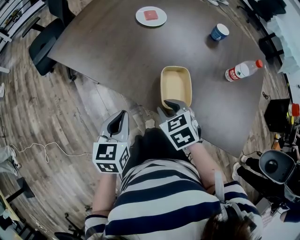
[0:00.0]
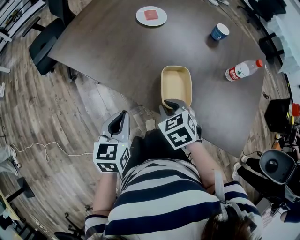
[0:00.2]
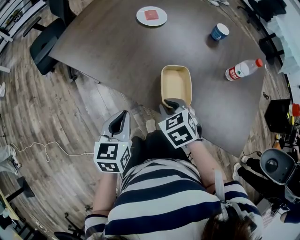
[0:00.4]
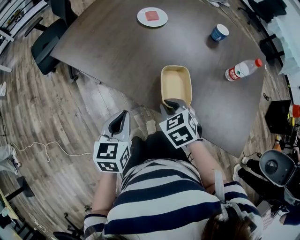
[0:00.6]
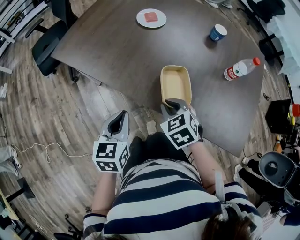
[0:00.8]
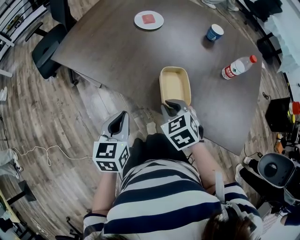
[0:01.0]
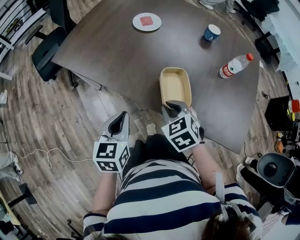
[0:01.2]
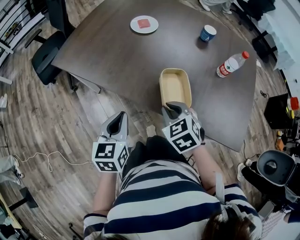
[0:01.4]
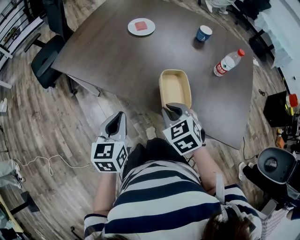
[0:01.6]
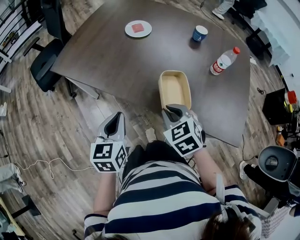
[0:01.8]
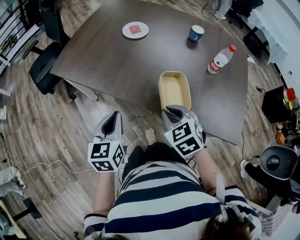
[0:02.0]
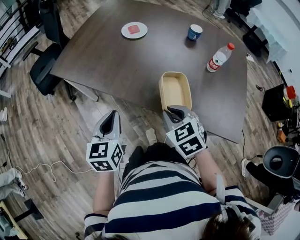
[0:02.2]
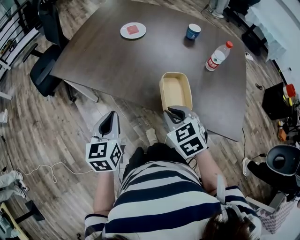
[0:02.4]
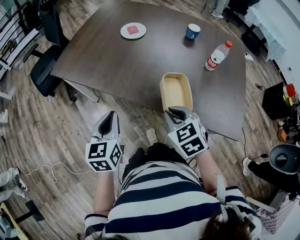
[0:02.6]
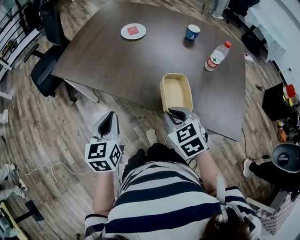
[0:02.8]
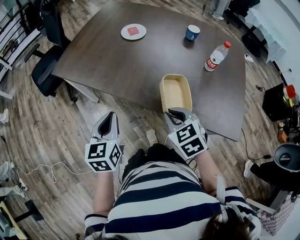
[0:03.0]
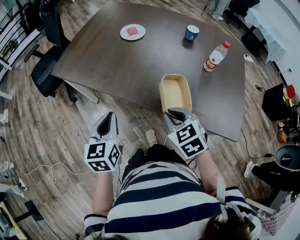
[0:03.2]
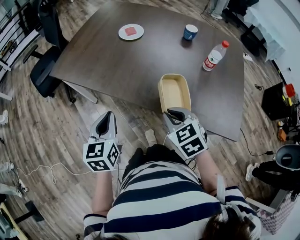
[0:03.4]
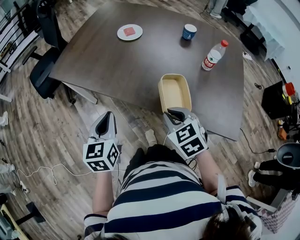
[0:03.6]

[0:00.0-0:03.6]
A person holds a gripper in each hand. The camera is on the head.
0.0 to 1.8 s: The left gripper changes place by some 5 cm, while the right gripper shifts approximately 10 cm upward and backward.
1.8 to 3.6 s: The right gripper moves some 5 cm.

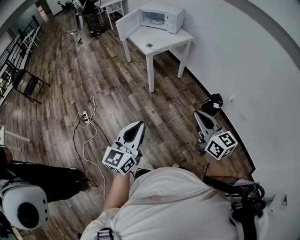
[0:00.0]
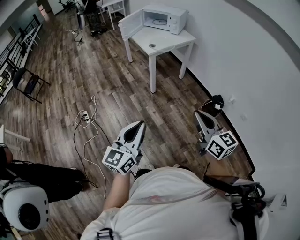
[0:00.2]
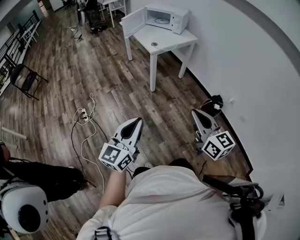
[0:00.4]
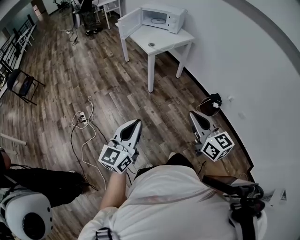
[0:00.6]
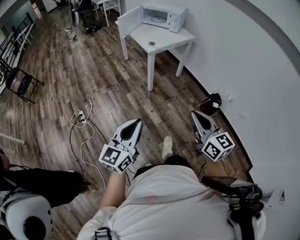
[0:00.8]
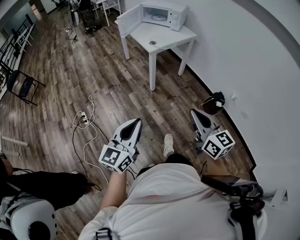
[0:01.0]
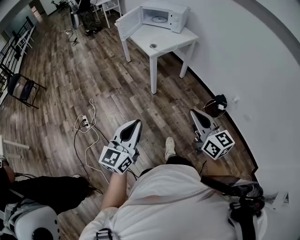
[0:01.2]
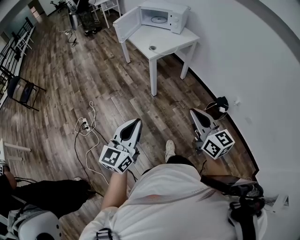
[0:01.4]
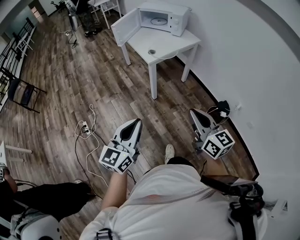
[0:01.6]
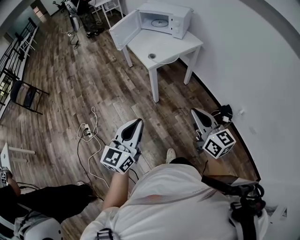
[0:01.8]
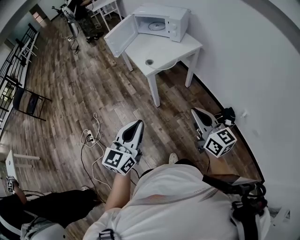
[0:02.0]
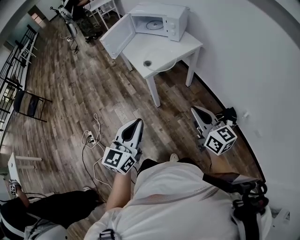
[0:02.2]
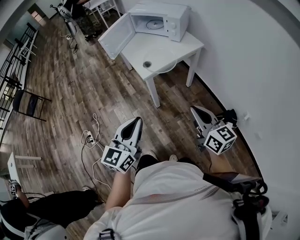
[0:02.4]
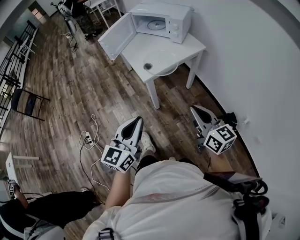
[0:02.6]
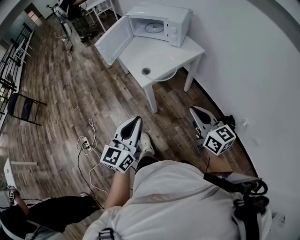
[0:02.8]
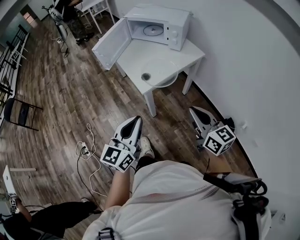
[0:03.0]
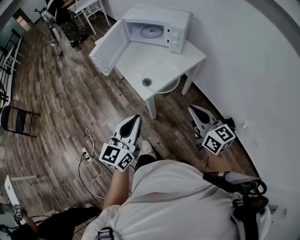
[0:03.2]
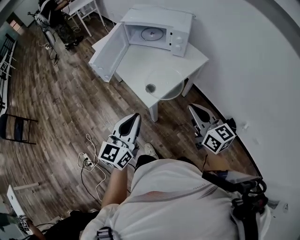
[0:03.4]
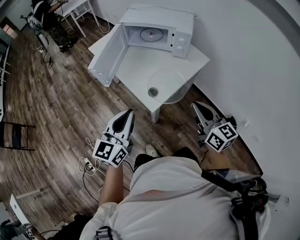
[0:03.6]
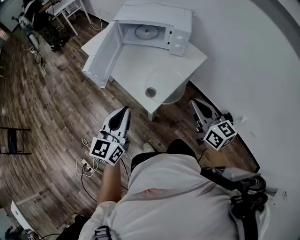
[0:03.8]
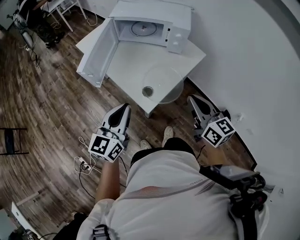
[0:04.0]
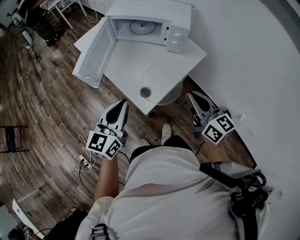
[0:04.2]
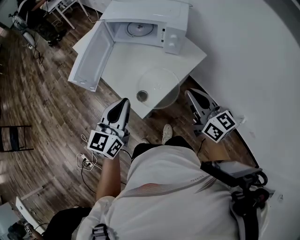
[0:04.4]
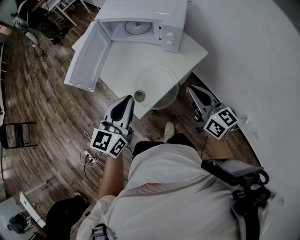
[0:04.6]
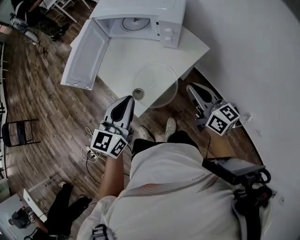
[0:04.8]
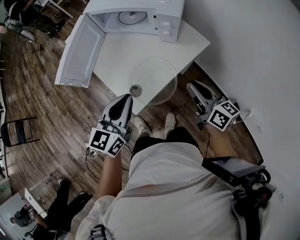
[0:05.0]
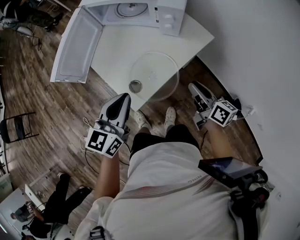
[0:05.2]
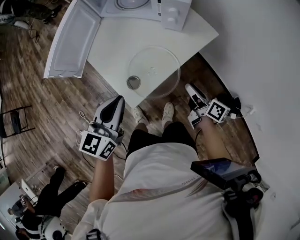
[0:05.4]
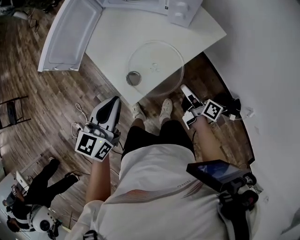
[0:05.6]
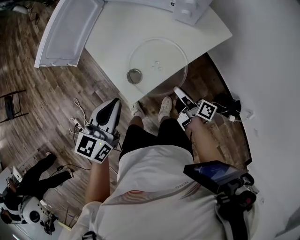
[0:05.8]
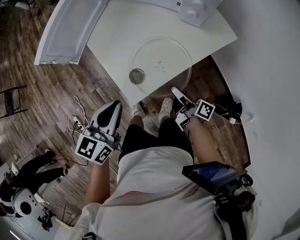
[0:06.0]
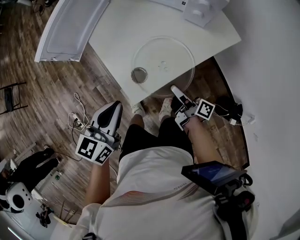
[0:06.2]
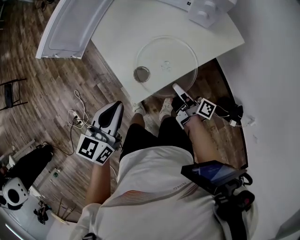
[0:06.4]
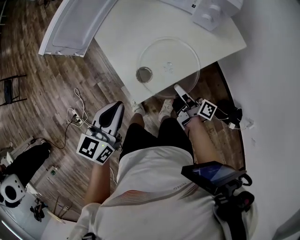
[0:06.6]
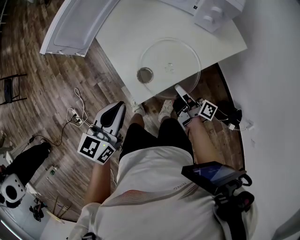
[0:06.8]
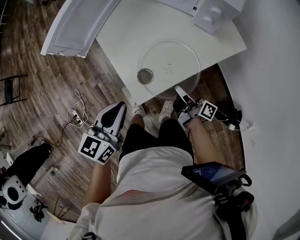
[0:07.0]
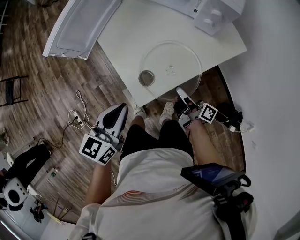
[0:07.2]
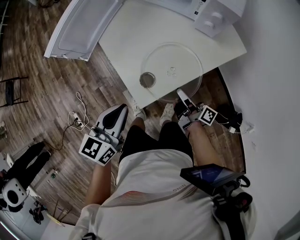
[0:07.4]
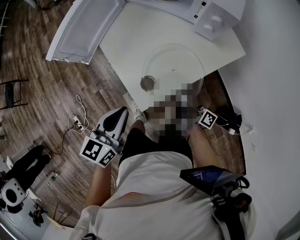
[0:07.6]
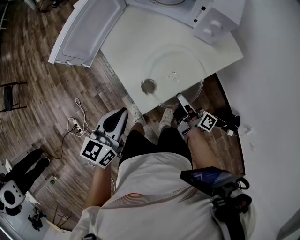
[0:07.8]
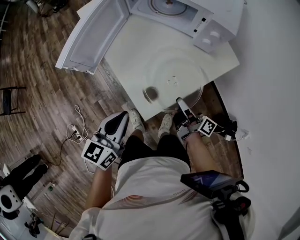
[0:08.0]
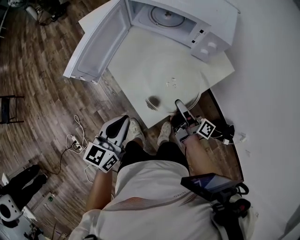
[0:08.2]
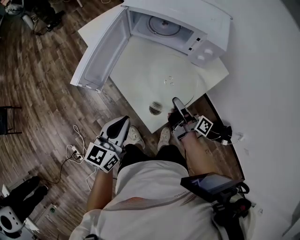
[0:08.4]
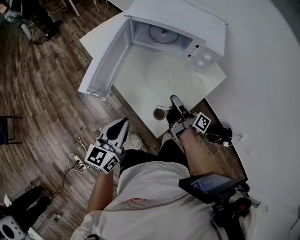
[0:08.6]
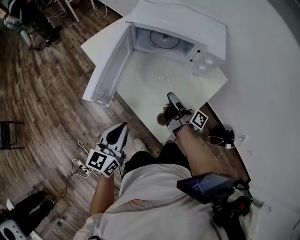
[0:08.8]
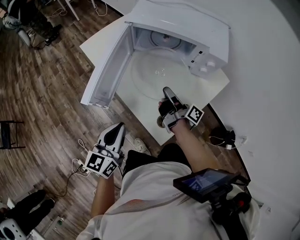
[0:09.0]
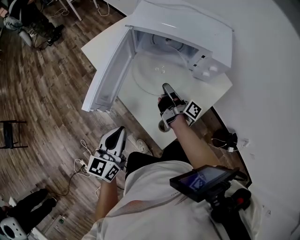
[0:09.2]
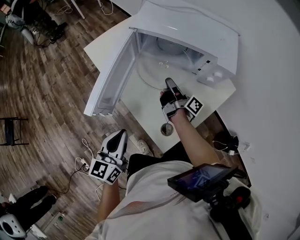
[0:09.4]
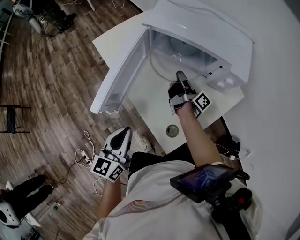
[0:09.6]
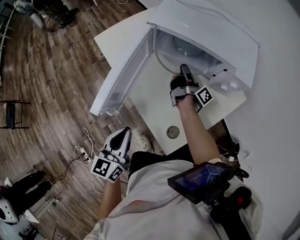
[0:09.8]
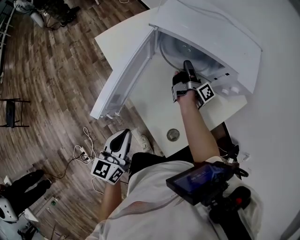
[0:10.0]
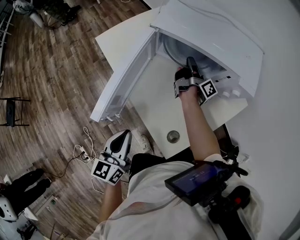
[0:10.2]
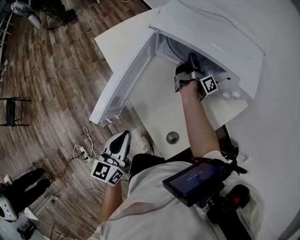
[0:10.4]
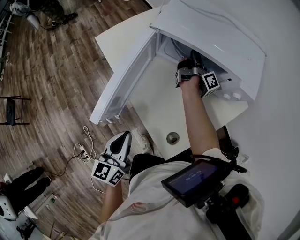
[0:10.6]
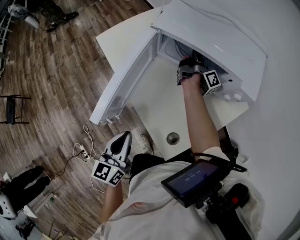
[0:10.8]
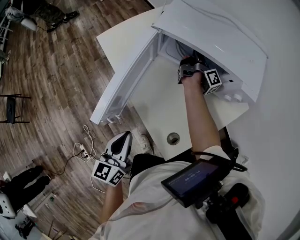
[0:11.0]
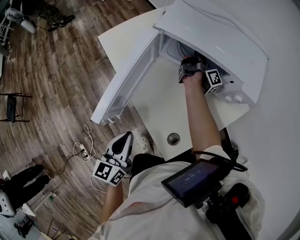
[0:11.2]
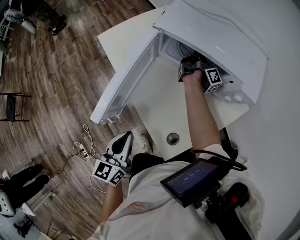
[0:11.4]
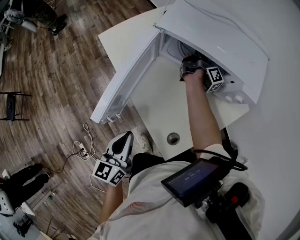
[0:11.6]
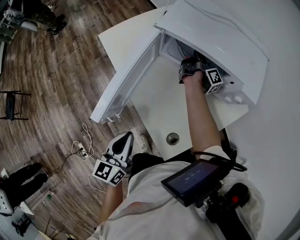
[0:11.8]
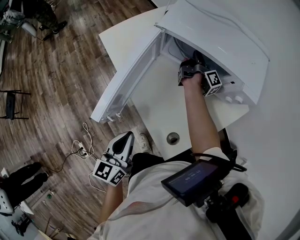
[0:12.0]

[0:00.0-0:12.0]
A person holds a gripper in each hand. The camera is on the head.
0.0 to 1.6 s: Both grippers travel together forward, roughly 20 cm.
1.6 to 3.0 s: Both grippers move forward, some 30 cm.
3.0 to 4.4 s: The grippers both shift forward by about 30 cm.
4.4 to 6.0 s: The right gripper goes some 30 cm downward, twists about 60 degrees clockwise, seen from behind, and opens up; the left gripper moves downward, about 15 cm.
6.0 to 7.6 s: The right gripper closes up.
7.6 to 9.0 s: The left gripper goes approximately 15 cm to the left, forward and upward. The right gripper travels forward, to the left and upward by some 25 cm.
9.0 to 10.4 s: The right gripper heads forward, covering roughly 25 cm, and changes its angle by approximately 20 degrees. Meanwhile the left gripper ends up roughly 5 cm from where it was.
10.4 to 12.0 s: The grippers stay close to where they were, moving slightly.

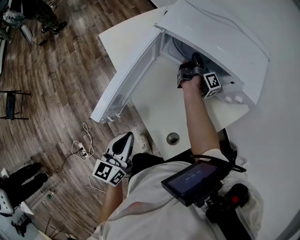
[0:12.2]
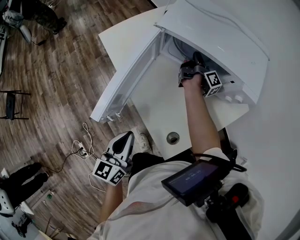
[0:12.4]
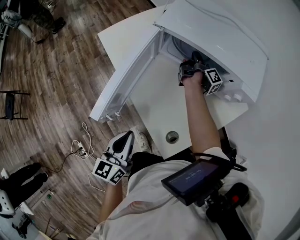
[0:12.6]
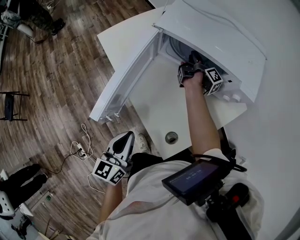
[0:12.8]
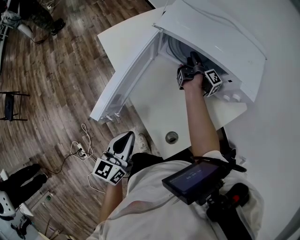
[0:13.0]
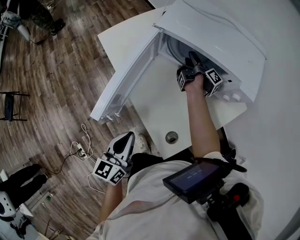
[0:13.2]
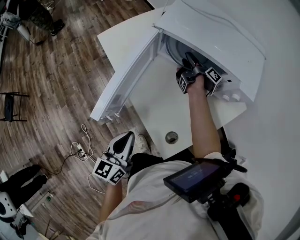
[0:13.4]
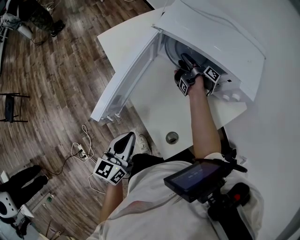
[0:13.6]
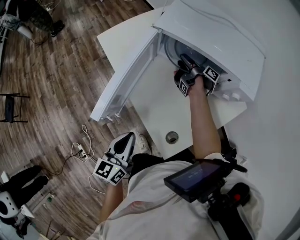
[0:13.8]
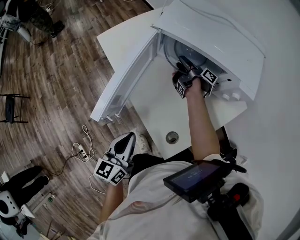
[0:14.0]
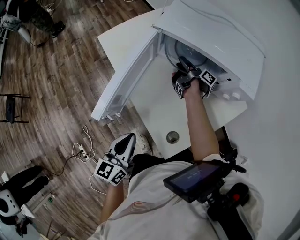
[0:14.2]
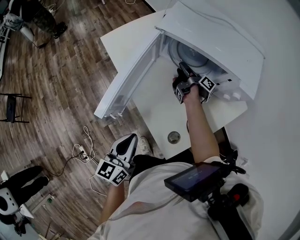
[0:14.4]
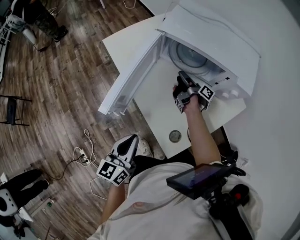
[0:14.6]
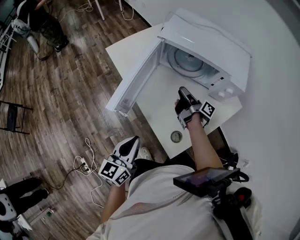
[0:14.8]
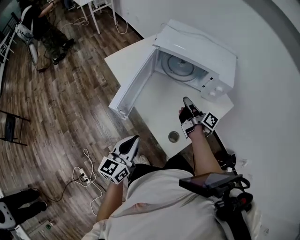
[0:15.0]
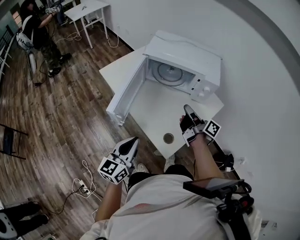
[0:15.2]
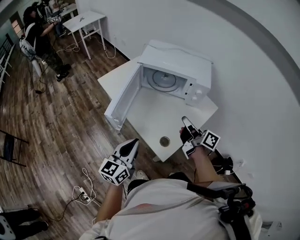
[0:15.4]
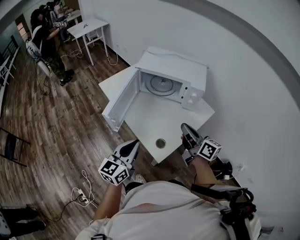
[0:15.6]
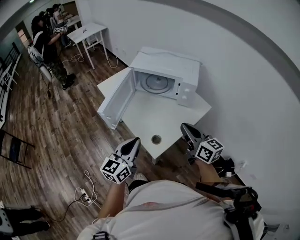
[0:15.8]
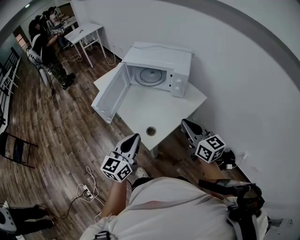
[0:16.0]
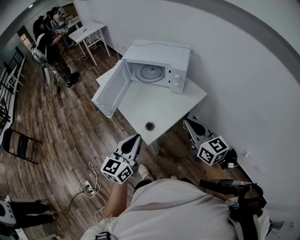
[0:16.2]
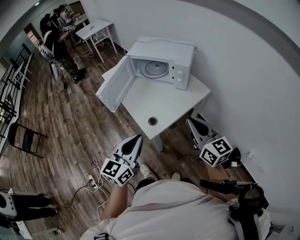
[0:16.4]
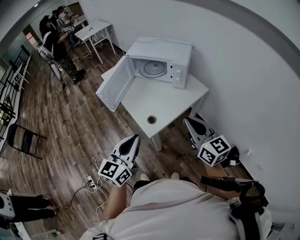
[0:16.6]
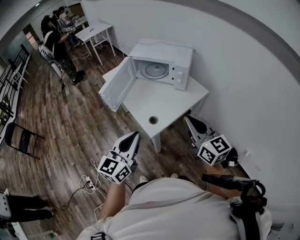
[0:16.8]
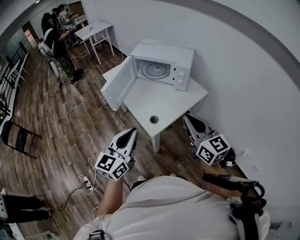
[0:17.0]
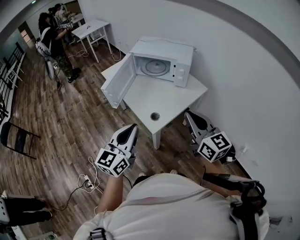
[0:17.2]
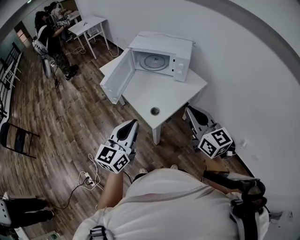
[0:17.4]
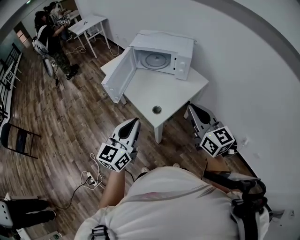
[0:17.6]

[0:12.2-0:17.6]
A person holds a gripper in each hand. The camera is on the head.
12.2 to 13.6 s: The right gripper travels to the left by about 5 cm, swivels about 30 degrees, and opens.
13.6 to 15.0 s: The right gripper moves backward and upward, some 25 cm, changes its angle by some 30 degrees, and closes its fingers. The left gripper heads backward, covering about 5 cm.
15.0 to 16.2 s: The left gripper goes approximately 25 cm to the right, backward and upward. Meanwhile the right gripper heads backward, upward and to the right, covering approximately 40 cm, and rotates around the line of its fingers by roughly 60 degrees, counterclockwise from behind.
16.2 to 17.6 s: The right gripper is displaced backward, upward and to the left by some 10 cm. Meanwhile the left gripper moves to the left, upward and backward, roughly 10 cm.

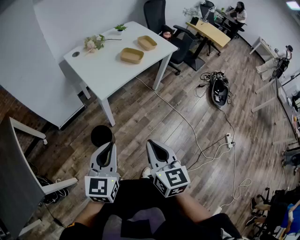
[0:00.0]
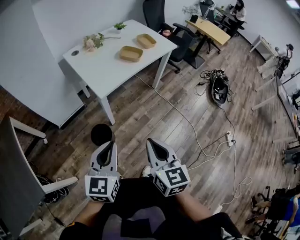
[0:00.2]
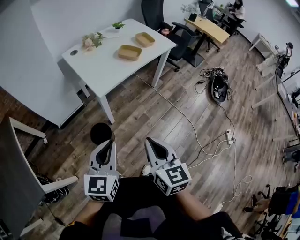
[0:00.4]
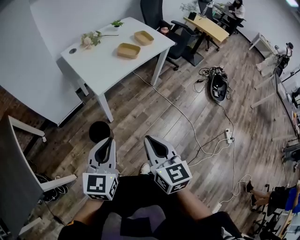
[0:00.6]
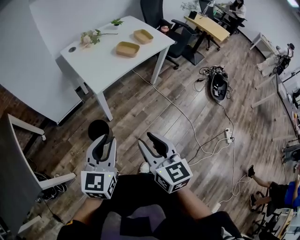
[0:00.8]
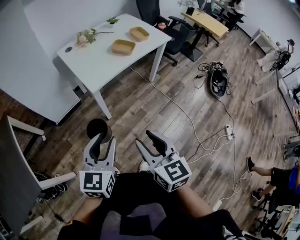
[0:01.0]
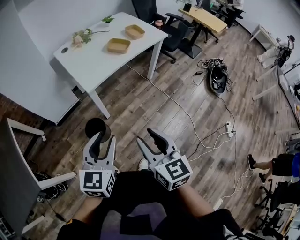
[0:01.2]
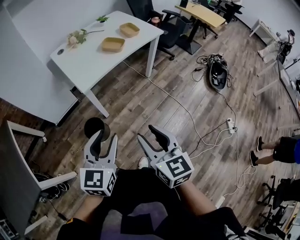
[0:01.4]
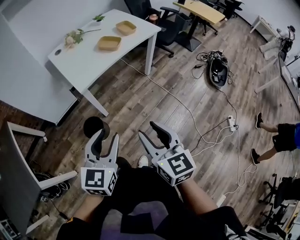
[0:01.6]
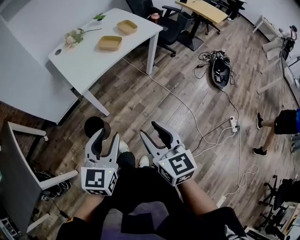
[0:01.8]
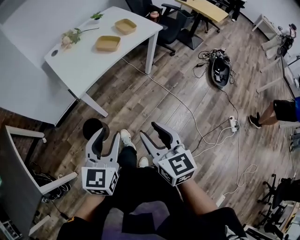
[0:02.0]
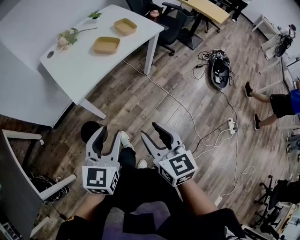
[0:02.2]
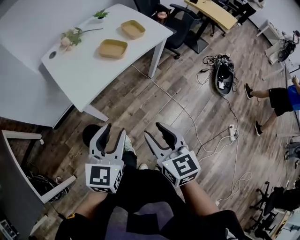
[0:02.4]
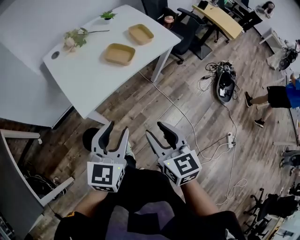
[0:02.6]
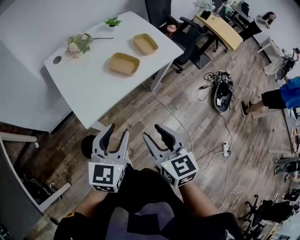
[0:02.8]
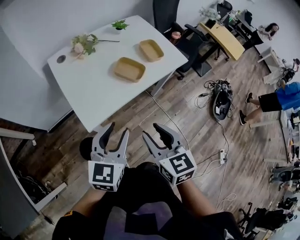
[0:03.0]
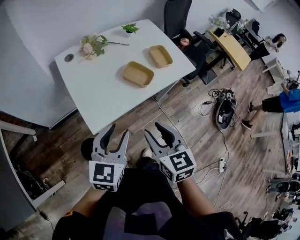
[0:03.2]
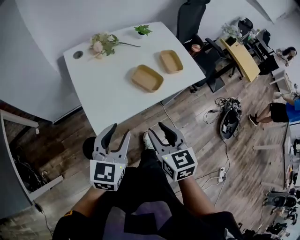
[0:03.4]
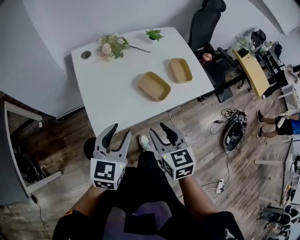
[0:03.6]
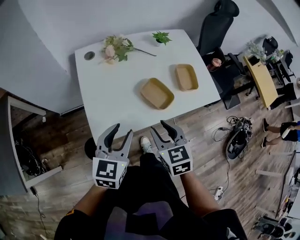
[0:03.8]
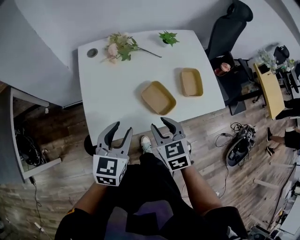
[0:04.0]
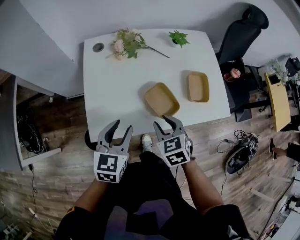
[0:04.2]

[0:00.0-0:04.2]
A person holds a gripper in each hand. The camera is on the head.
0.0 to 1.4 s: Both grippers move to the right, some 10 cm. The right gripper opens its fingers; the left gripper opens its fingers.
1.4 to 2.8 s: Both grippers move forward, about 30 cm.
2.8 to 4.2 s: The right gripper ends up some 35 cm from where it was, and rotates some 40 degrees. The left gripper changes place by approximately 25 cm, and turns by some 30 degrees.
